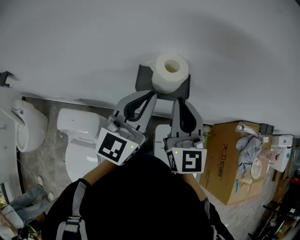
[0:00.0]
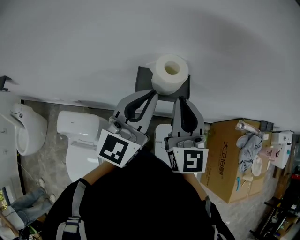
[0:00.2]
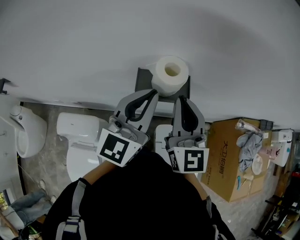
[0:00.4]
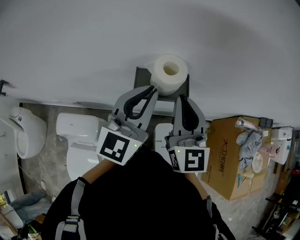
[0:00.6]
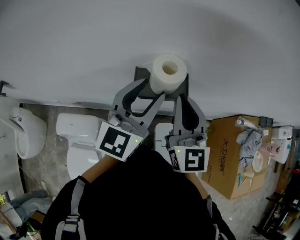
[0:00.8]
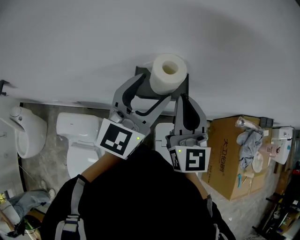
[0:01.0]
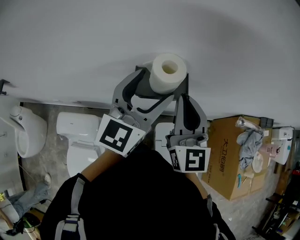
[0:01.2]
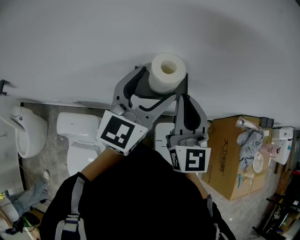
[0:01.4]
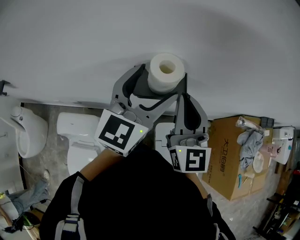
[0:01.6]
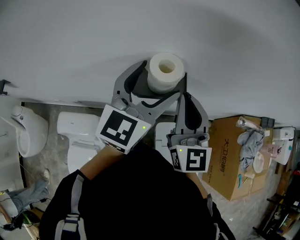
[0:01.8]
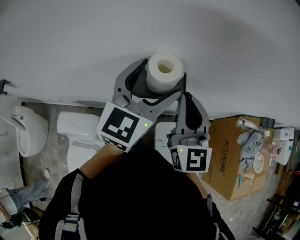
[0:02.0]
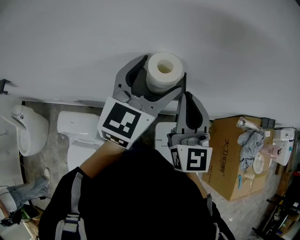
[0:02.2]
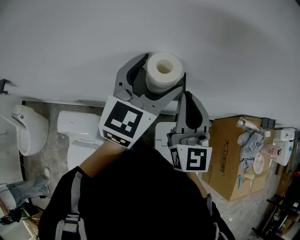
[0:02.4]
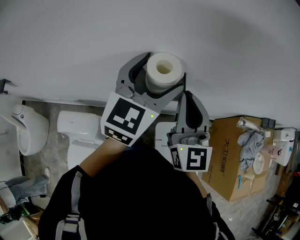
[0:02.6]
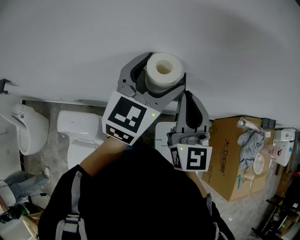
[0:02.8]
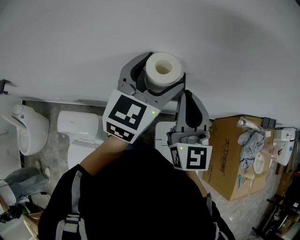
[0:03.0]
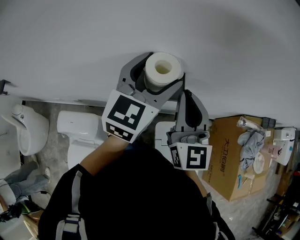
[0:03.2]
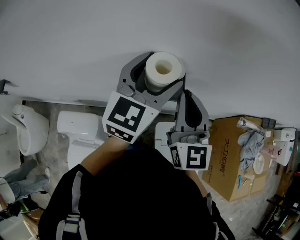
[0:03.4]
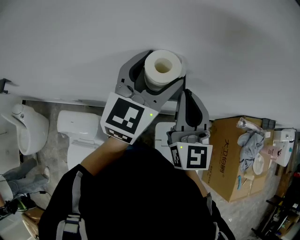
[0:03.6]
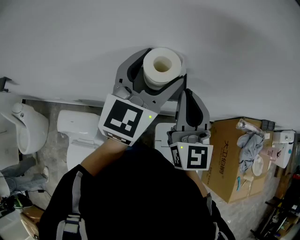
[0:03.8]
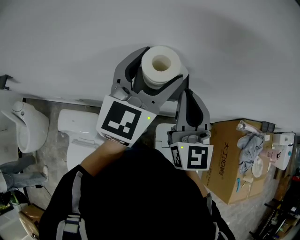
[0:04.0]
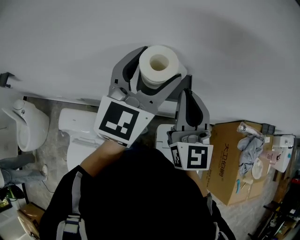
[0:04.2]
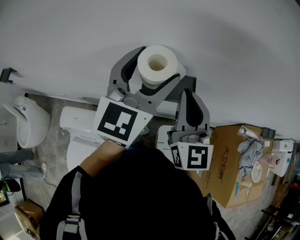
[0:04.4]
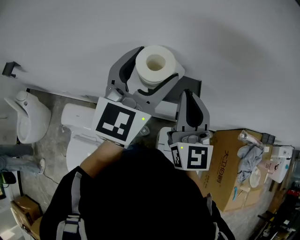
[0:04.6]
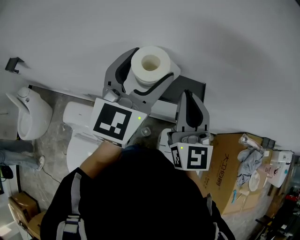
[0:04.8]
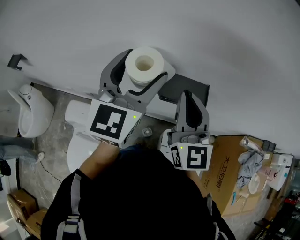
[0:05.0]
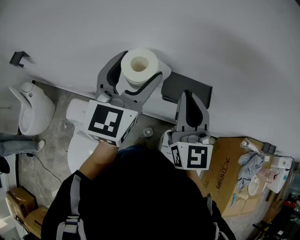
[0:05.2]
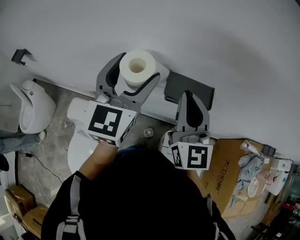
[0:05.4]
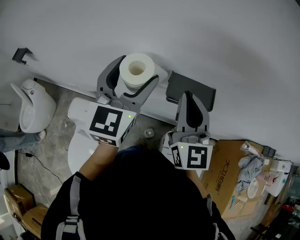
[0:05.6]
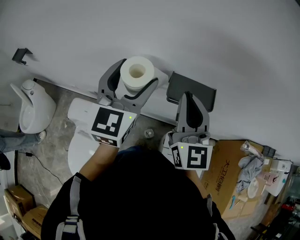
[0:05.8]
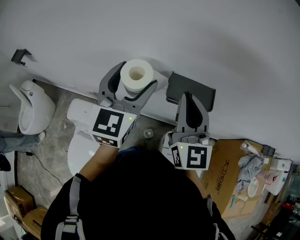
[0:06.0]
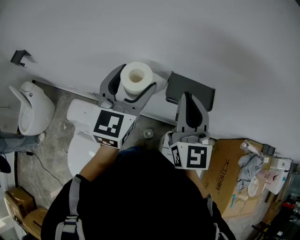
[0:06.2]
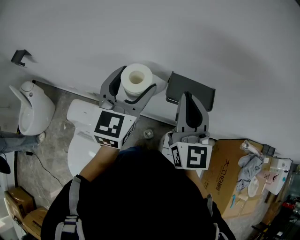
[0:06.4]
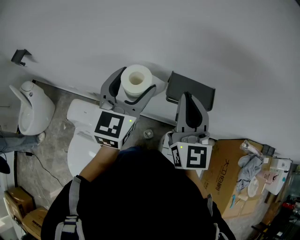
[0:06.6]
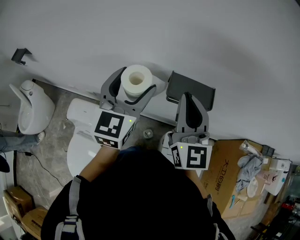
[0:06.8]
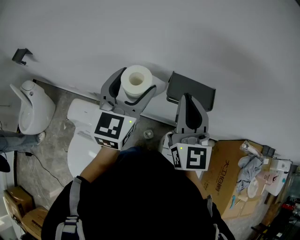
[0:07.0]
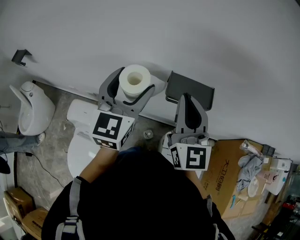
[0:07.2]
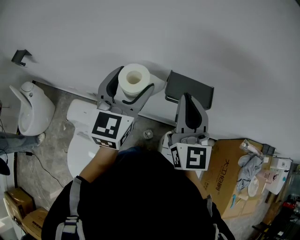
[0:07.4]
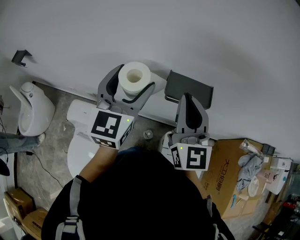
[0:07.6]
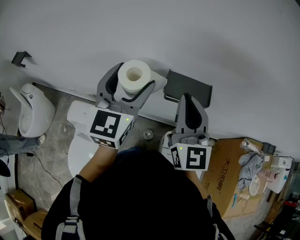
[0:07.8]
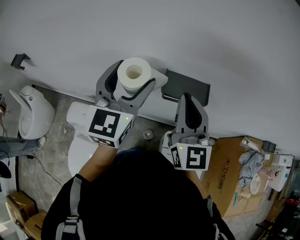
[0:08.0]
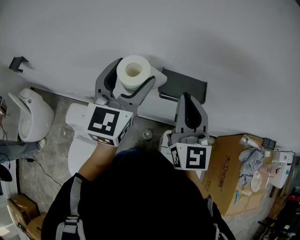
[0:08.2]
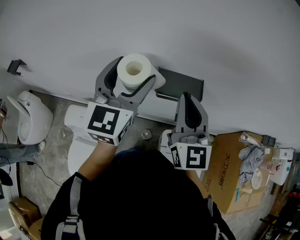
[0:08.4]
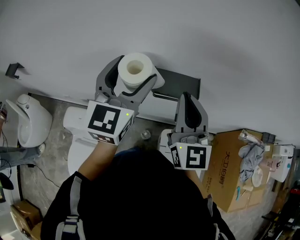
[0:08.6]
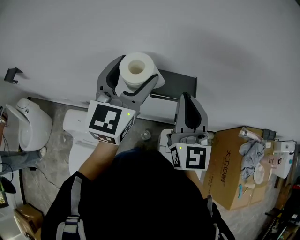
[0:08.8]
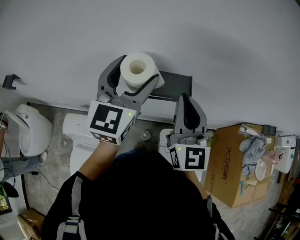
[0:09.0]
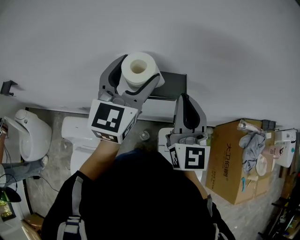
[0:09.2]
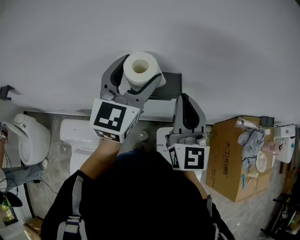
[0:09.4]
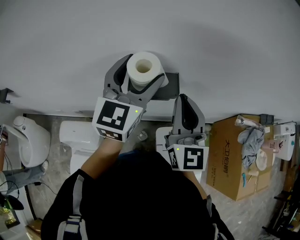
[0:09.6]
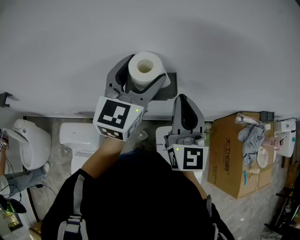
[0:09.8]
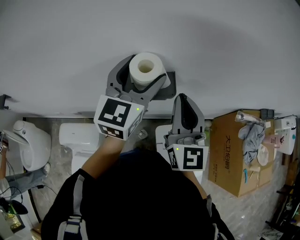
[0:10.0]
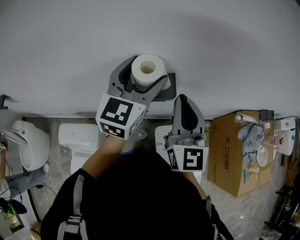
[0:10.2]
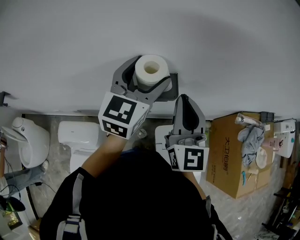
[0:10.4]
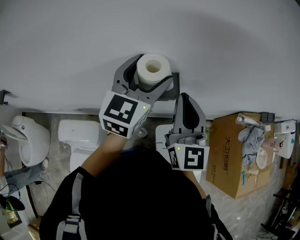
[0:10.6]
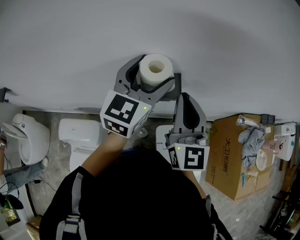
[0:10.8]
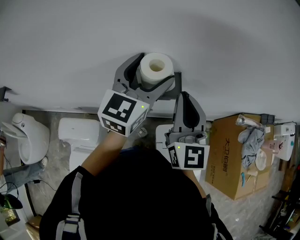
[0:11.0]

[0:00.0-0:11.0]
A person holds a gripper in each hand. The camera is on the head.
0:00.0 to 0:01.6: The left gripper moves roughly 5 cm, and opens its fingers.
0:01.6 to 0:03.2: The grippers make only small movements.
0:03.2 to 0:04.8: The left gripper travels to the left by some 10 cm. The right gripper goes about 5 cm to the left.
0:04.8 to 0:06.2: The left gripper goes roughly 10 cm to the left and downward.
0:06.2 to 0:07.8: The grippers move only a little.
0:07.8 to 0:09.4: Both grippers move to the right, approximately 10 cm.
0:09.4 to 0:11.0: The left gripper moves roughly 5 cm.

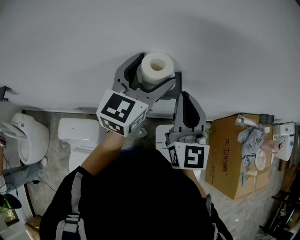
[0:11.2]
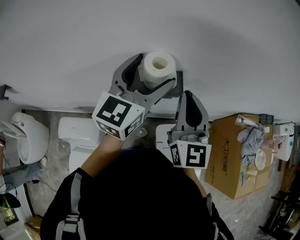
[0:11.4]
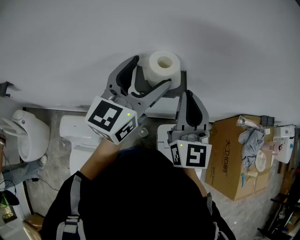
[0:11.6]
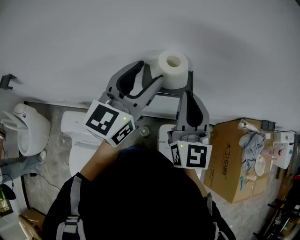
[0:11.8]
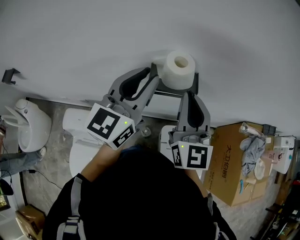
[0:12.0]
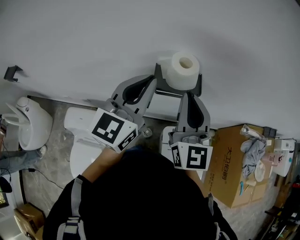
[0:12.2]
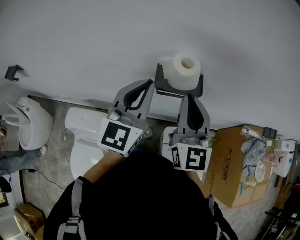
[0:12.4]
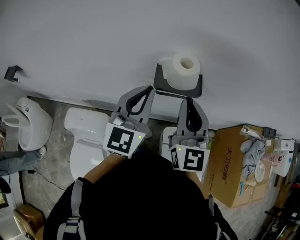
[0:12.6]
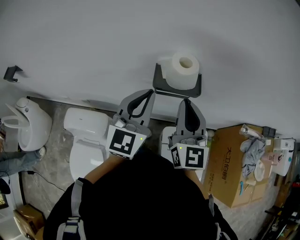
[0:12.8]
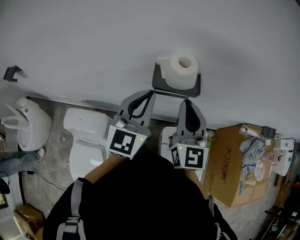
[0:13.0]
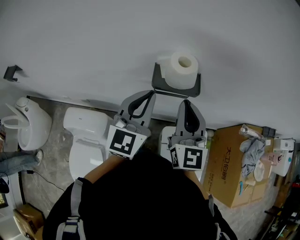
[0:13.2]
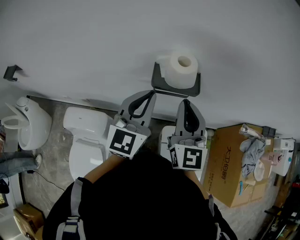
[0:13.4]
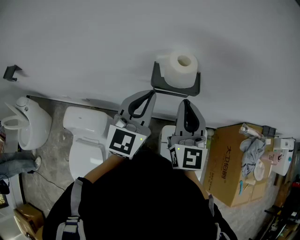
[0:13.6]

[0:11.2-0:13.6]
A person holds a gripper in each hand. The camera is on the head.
0:11.2 to 0:12.4: The right gripper shifts about 5 cm to the left. The left gripper shifts roughly 15 cm backward and to the left, and closes up.
0:12.4 to 0:13.6: The left gripper ends up about 5 cm from where it was.

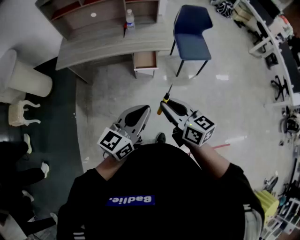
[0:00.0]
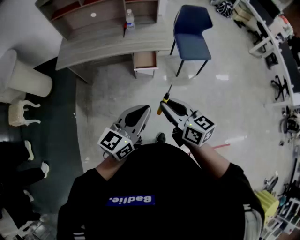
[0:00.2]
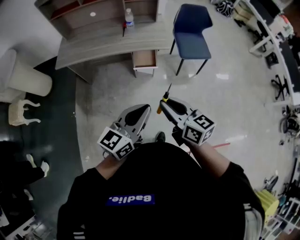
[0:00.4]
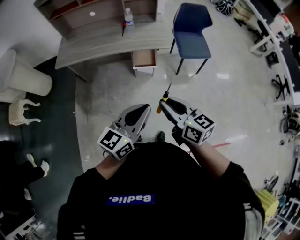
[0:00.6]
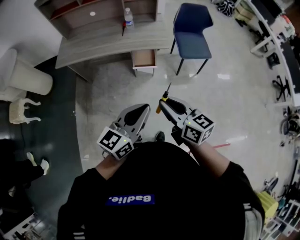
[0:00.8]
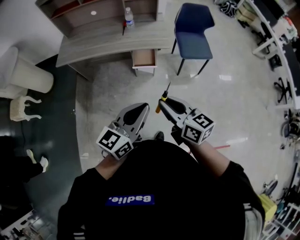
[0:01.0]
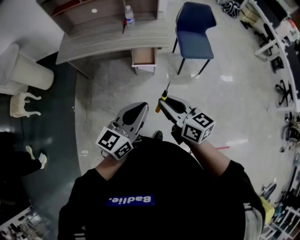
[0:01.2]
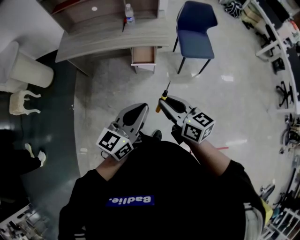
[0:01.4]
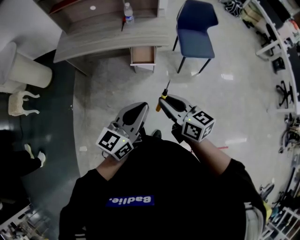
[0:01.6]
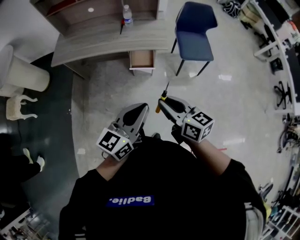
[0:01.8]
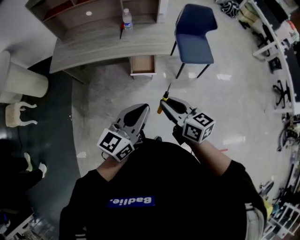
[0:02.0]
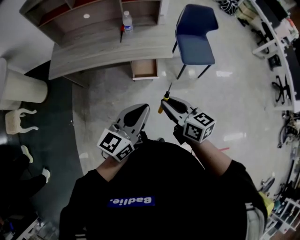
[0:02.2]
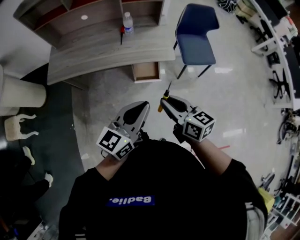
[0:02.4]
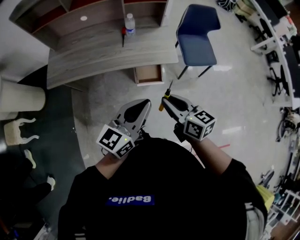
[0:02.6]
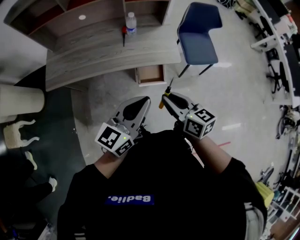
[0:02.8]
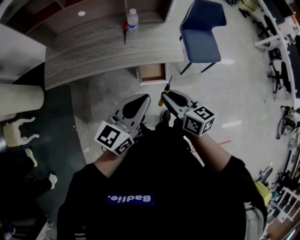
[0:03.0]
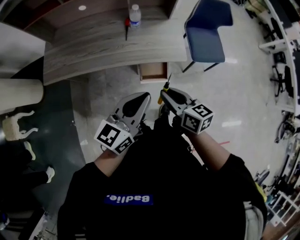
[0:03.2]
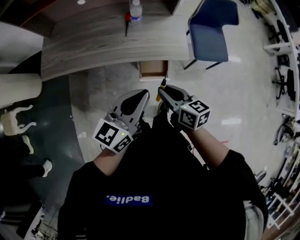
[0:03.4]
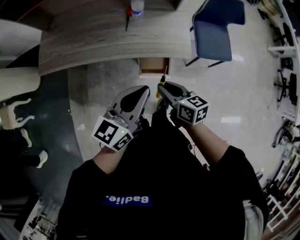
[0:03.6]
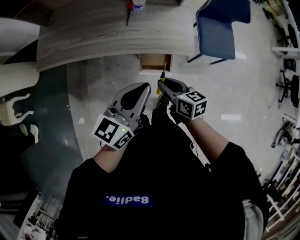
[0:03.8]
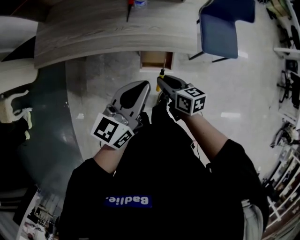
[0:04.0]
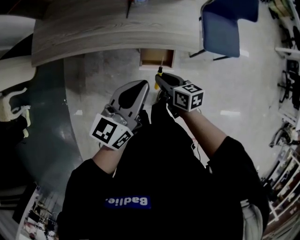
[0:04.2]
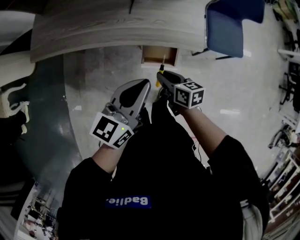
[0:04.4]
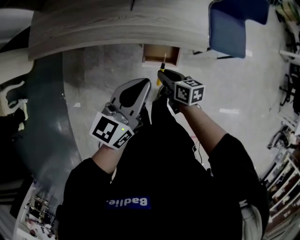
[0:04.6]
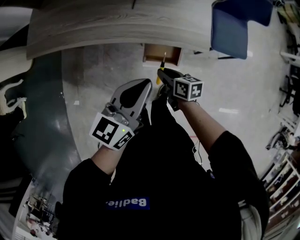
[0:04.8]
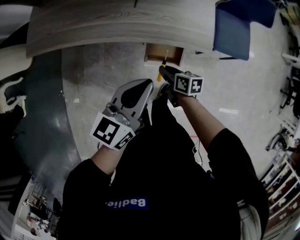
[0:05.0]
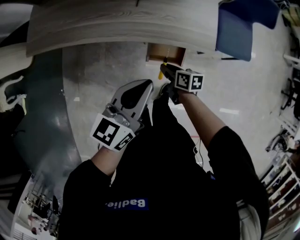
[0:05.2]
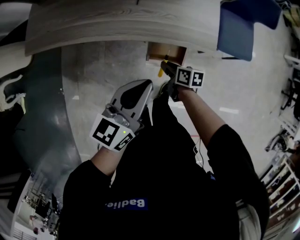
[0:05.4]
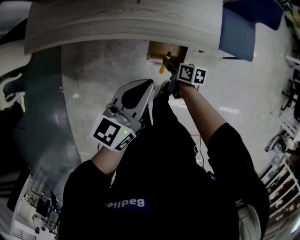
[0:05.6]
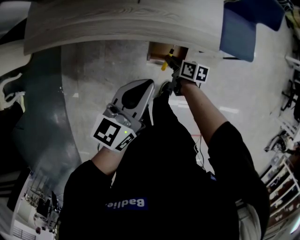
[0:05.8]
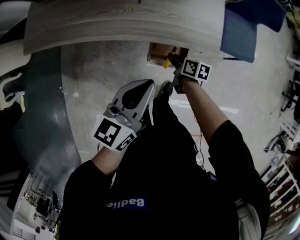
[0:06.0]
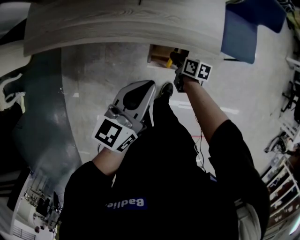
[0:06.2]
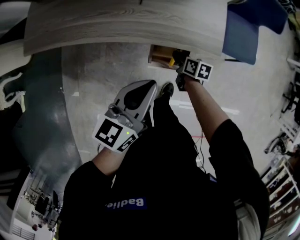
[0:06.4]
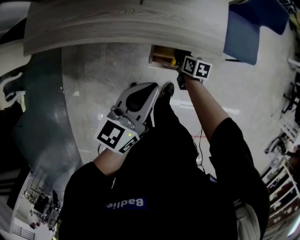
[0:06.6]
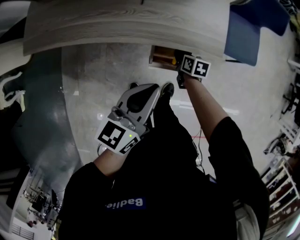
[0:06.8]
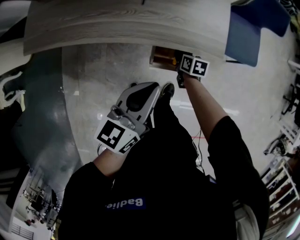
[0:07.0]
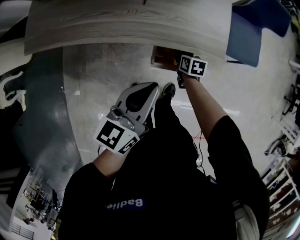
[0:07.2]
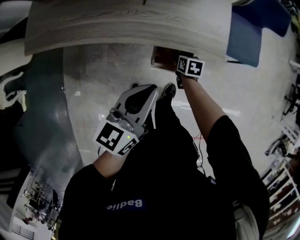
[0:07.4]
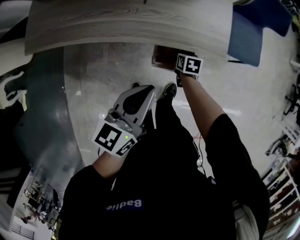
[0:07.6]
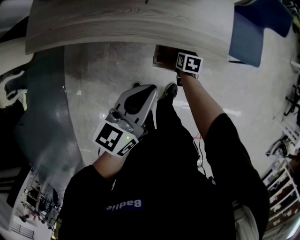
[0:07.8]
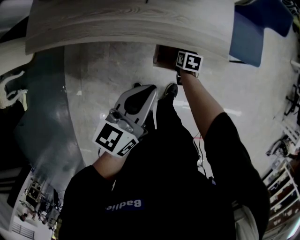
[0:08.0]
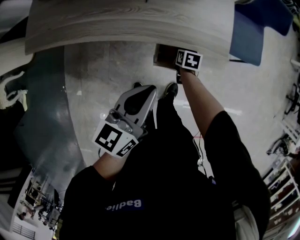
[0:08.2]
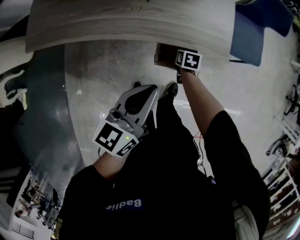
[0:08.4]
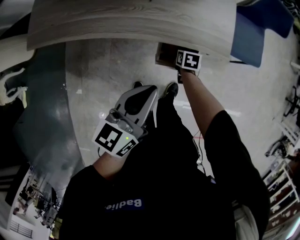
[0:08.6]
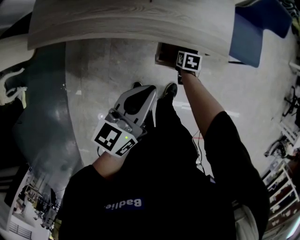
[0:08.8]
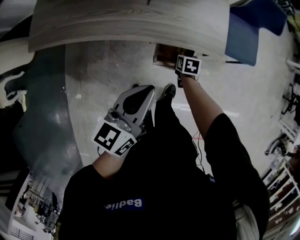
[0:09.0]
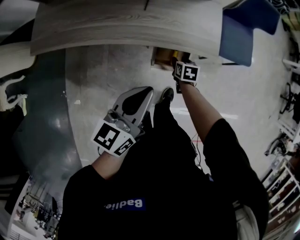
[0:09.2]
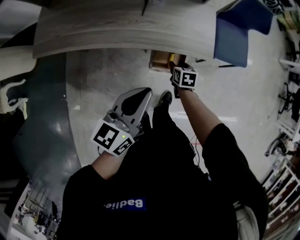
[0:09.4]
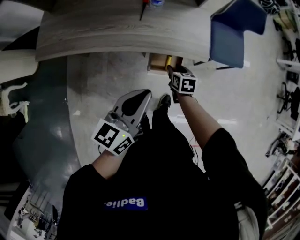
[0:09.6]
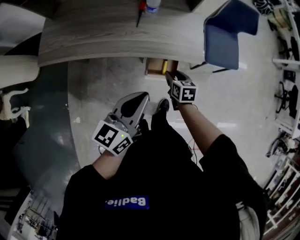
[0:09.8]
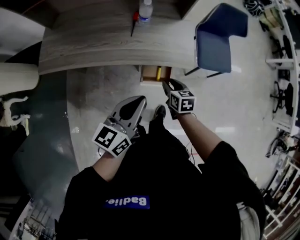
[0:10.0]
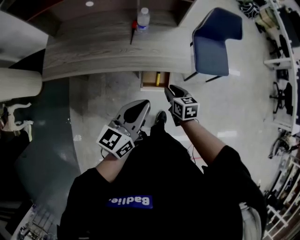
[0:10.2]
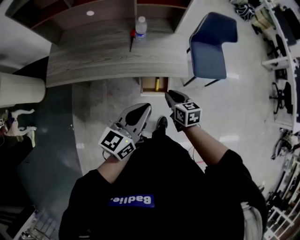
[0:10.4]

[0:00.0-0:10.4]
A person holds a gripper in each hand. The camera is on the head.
0:00.0 to 0:01.4: The two grippers go approximately 5 cm to the right.
0:01.4 to 0:03.0: Both grippers travel together forward and to the left, approximately 30 cm.
0:03.0 to 0:04.4: The left gripper is displaced downward and forward by about 15 cm; the right gripper travels downward by some 25 cm, and changes its angle by some 20 degrees.
0:04.4 to 0:06.0: The left gripper goes some 5 cm downward. Meanwhile the right gripper goes about 15 cm downward and forward.
0:06.0 to 0:07.4: The right gripper shifts approximately 5 cm downward, and changes its angle by some 20 degrees.
0:07.4 to 0:09.0: The right gripper opens.
0:09.0 to 0:10.4: The right gripper goes approximately 30 cm upward, rotates some 30 degrees, and closes its fingers; the left gripper goes some 10 cm upward.
